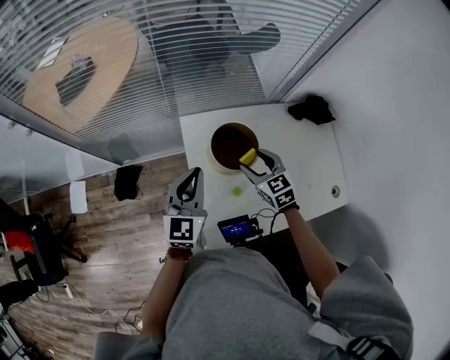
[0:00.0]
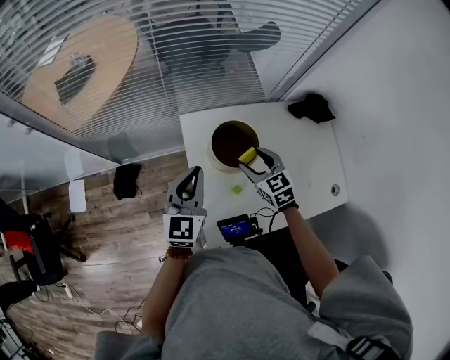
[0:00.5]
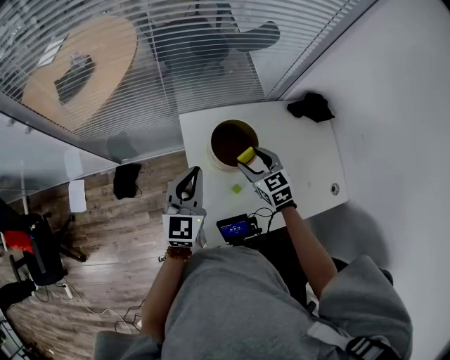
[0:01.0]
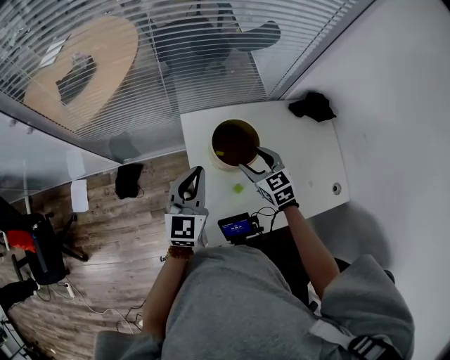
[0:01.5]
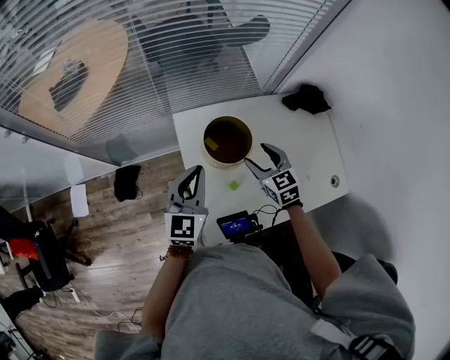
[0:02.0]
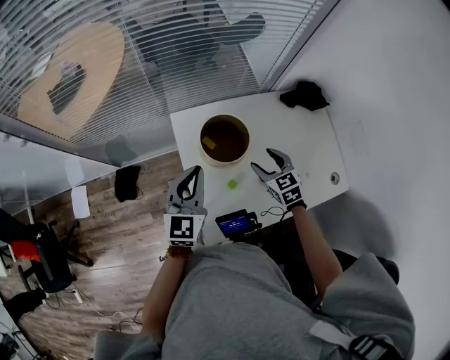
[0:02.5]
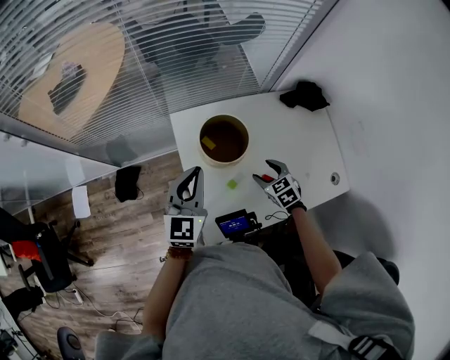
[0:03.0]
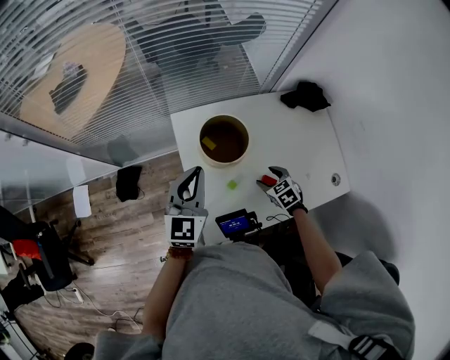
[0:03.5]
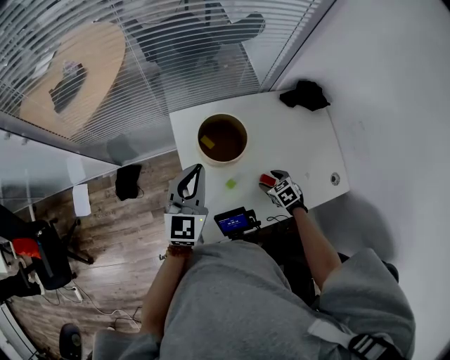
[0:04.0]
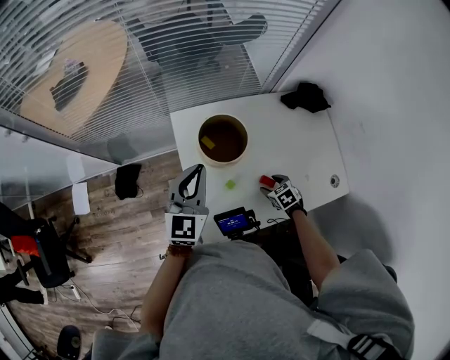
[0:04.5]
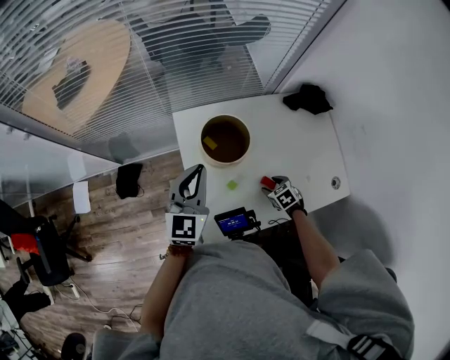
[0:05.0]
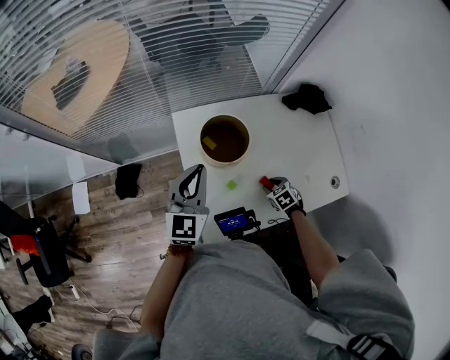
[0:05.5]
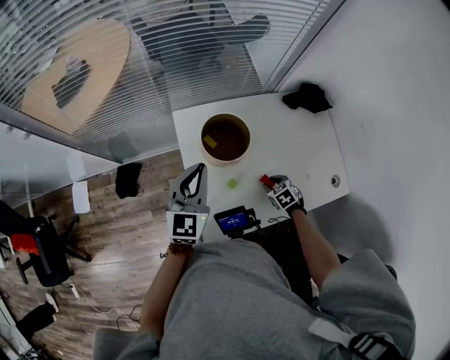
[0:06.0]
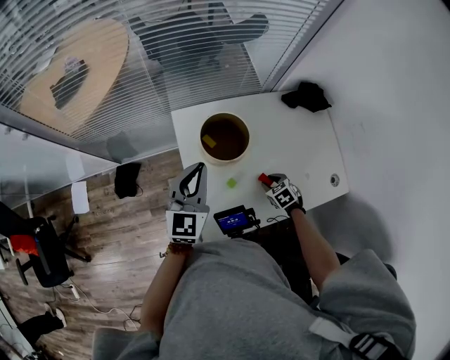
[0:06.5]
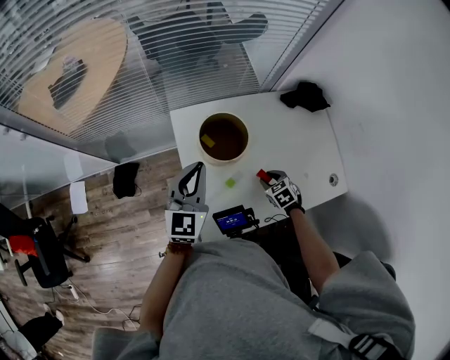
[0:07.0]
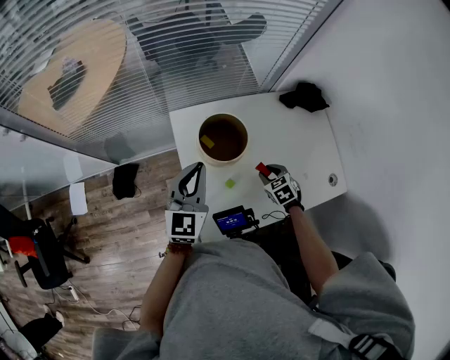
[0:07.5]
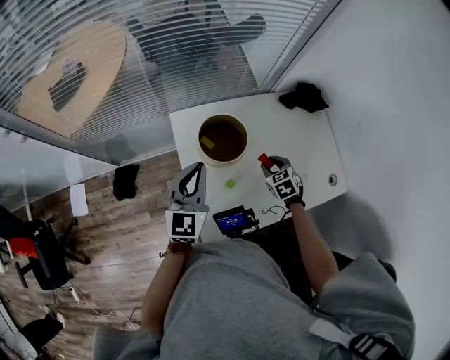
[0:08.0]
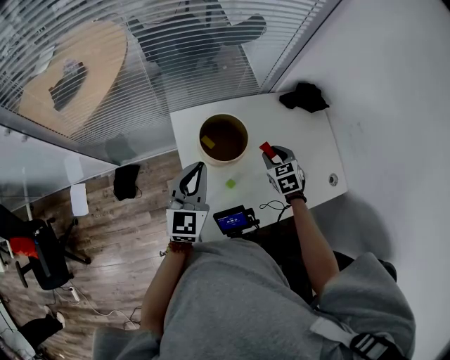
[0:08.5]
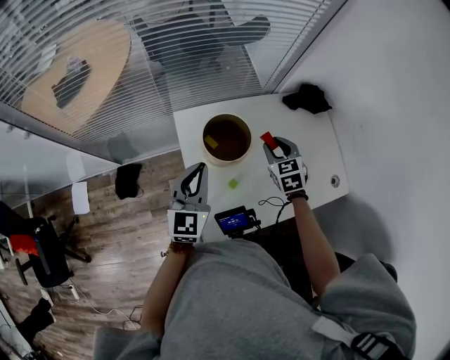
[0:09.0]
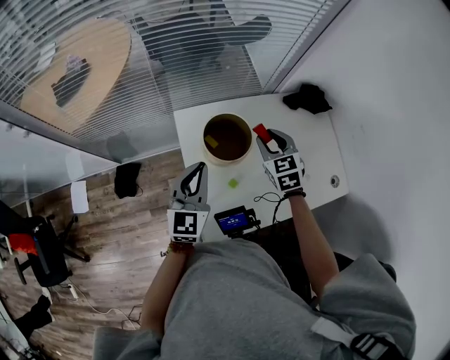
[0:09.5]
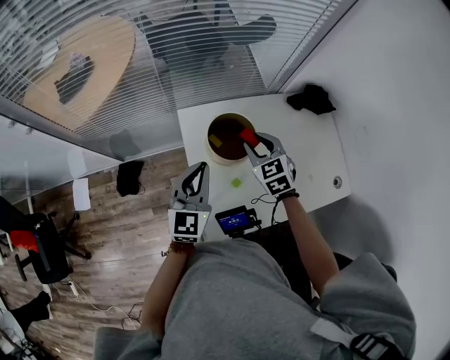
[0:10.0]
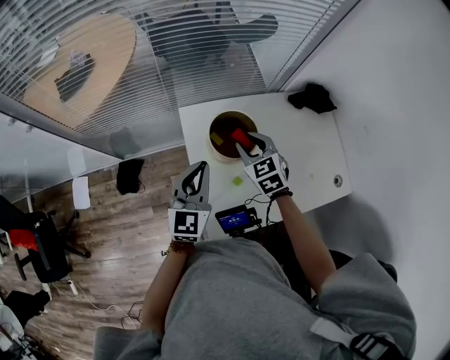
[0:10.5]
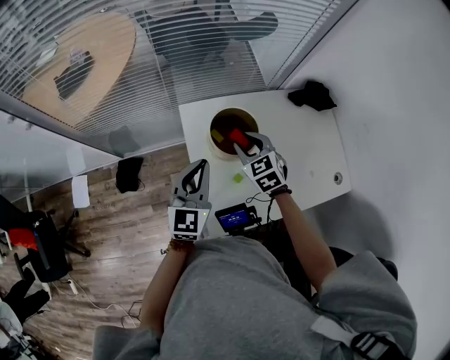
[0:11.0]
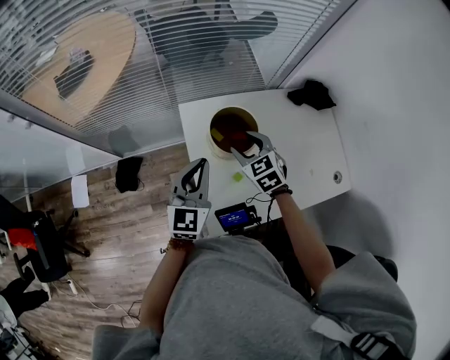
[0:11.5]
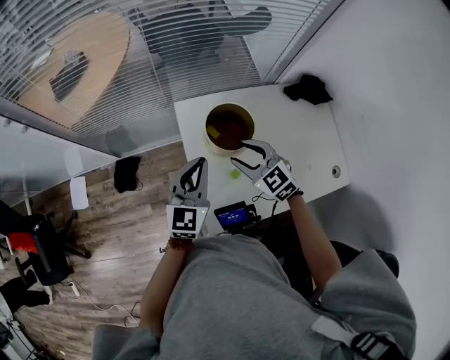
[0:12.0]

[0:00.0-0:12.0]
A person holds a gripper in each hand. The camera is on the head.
0:00.0 to 0:02.0: There are only small adjustments of the grippers.
0:02.0 to 0:04.0: The right gripper heads downward, backward and to the right, covering some 25 cm, and tilts its fingers roughly 30 degrees downward.
0:04.0 to 0:06.0: The right gripper closes up.
0:06.0 to 0:08.0: The right gripper heads upward and forward, covering approximately 15 cm.
0:08.0 to 0:10.0: The right gripper shifts some 20 cm upward and to the left, and rotates about 20 degrees.
0:10.0 to 0:12.0: The right gripper moves backward and to the left, approximately 10 cm, and changes its angle by roughly 20 degrees.

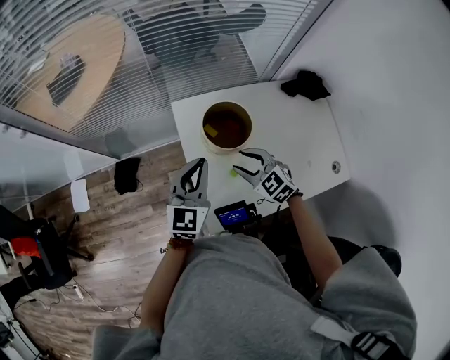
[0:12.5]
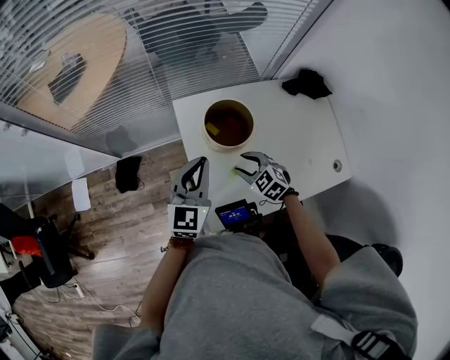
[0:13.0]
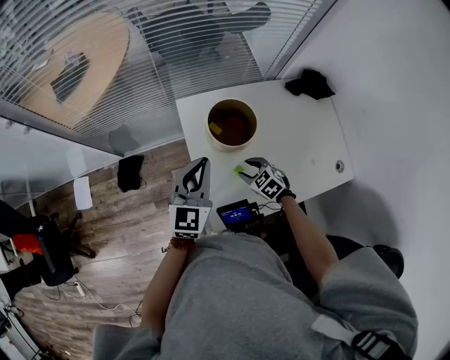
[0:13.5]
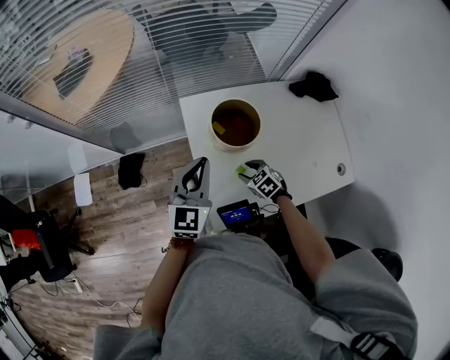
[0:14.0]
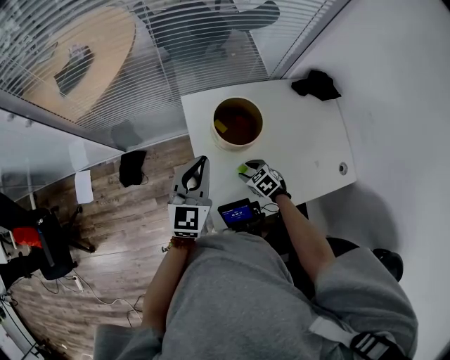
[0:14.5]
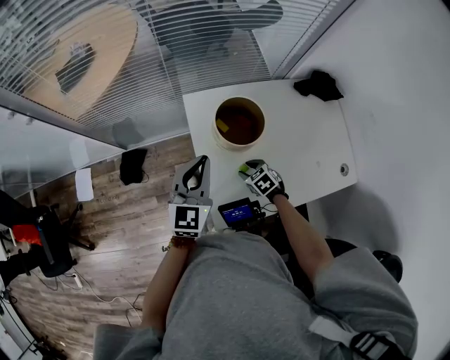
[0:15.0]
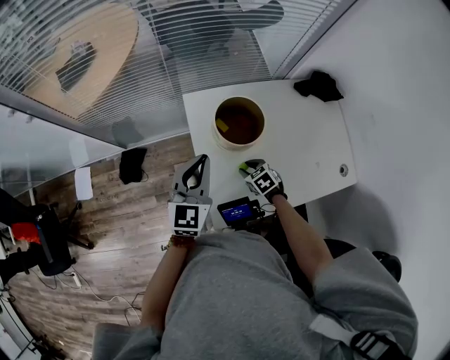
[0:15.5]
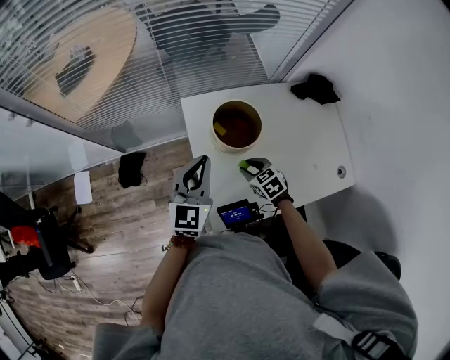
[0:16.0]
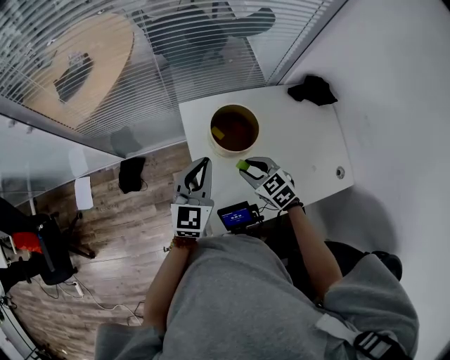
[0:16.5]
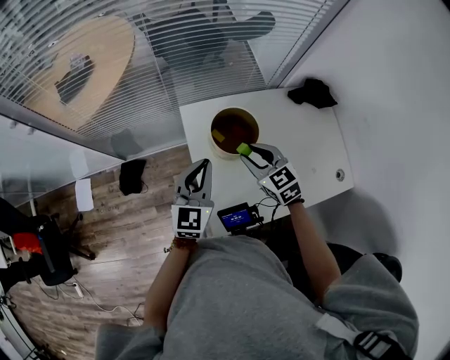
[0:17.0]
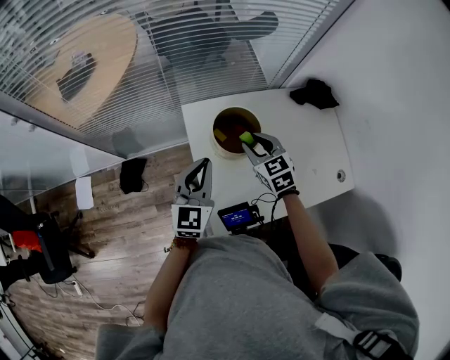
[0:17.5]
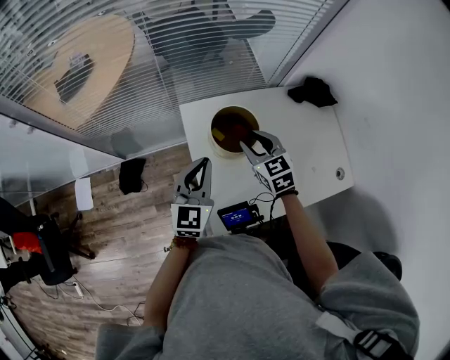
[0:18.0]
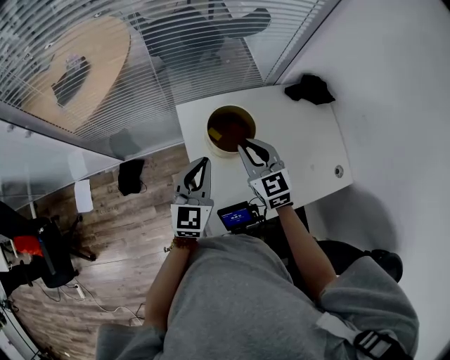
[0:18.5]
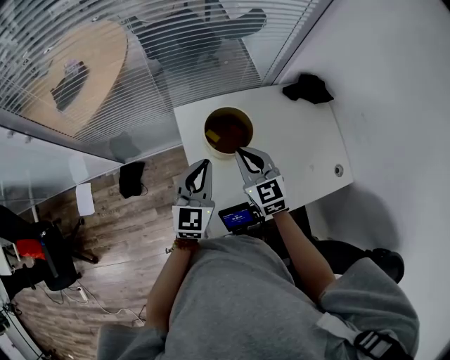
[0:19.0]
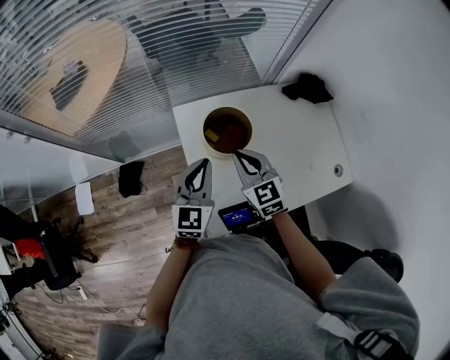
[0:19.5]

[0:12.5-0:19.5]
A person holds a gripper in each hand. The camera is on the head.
0:12.5 to 0:14.5: The right gripper travels downward by about 20 cm, and rotates about 30 degrees.
0:14.5 to 0:16.0: The right gripper travels upward by some 5 cm.
0:16.0 to 0:17.5: The right gripper moves upward and forward, about 15 cm, and swivels some 20 degrees.
0:17.5 to 0:19.5: The right gripper changes place by approximately 5 cm, and closes its fingers.

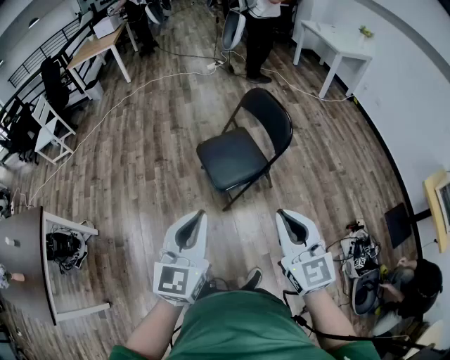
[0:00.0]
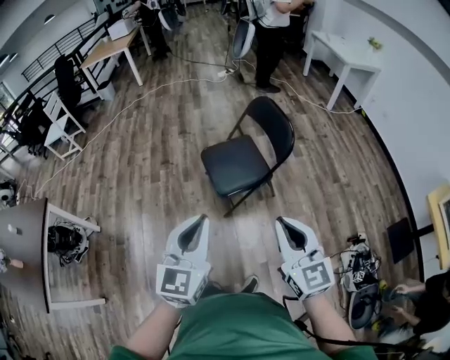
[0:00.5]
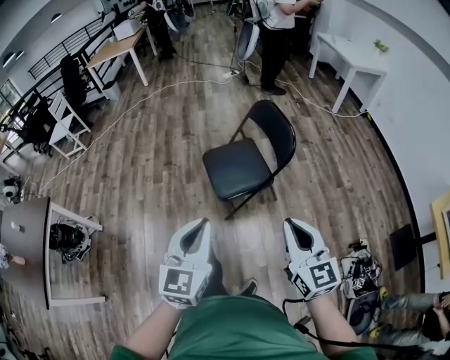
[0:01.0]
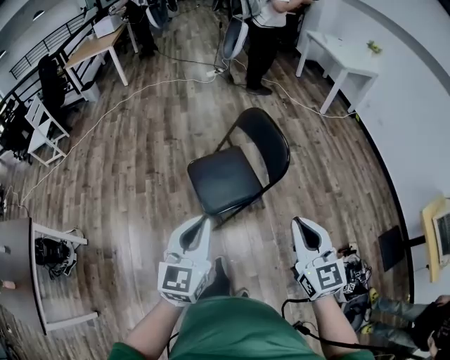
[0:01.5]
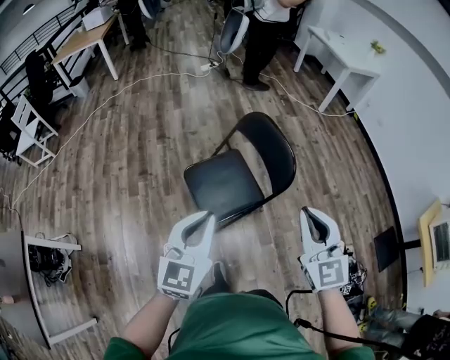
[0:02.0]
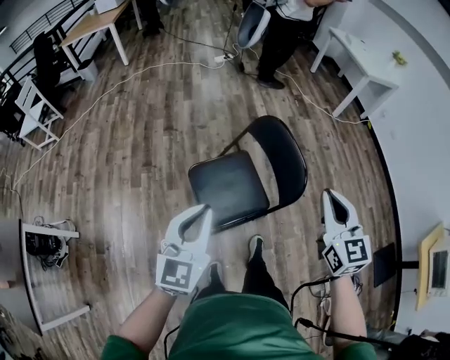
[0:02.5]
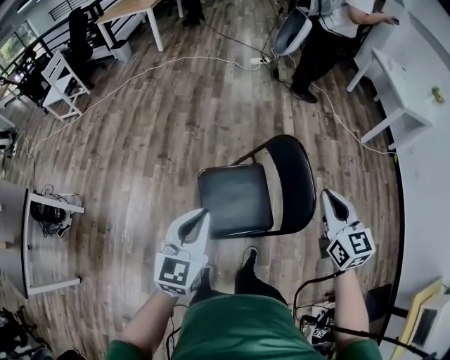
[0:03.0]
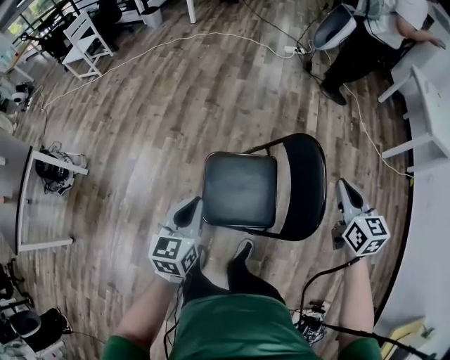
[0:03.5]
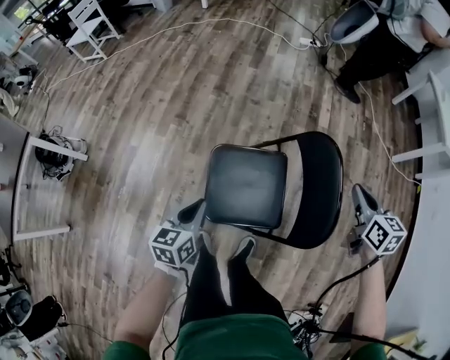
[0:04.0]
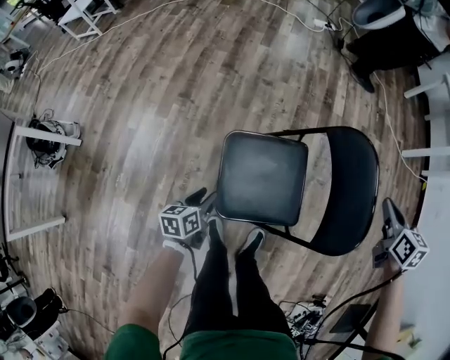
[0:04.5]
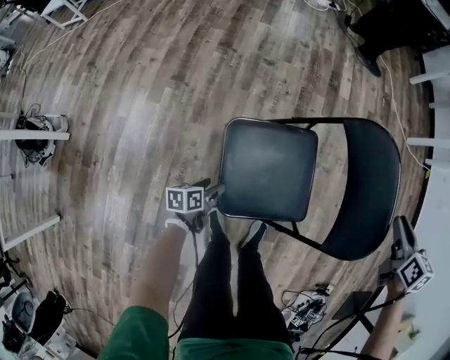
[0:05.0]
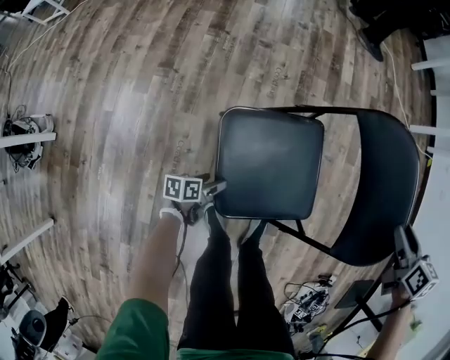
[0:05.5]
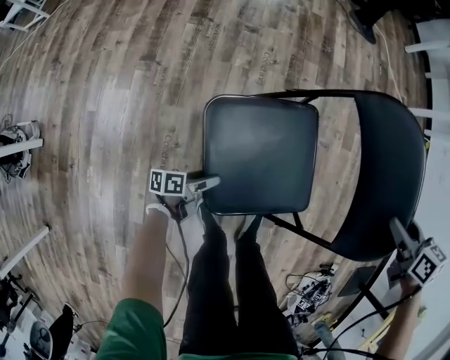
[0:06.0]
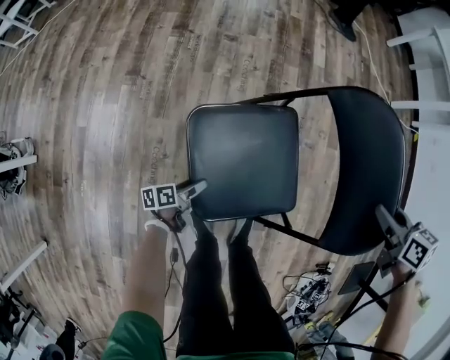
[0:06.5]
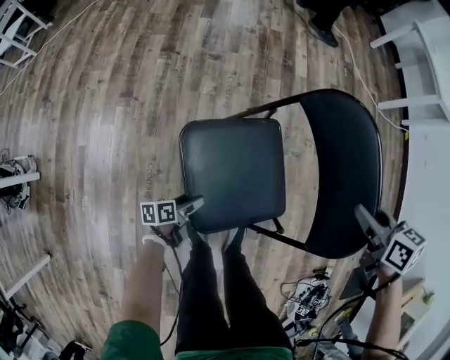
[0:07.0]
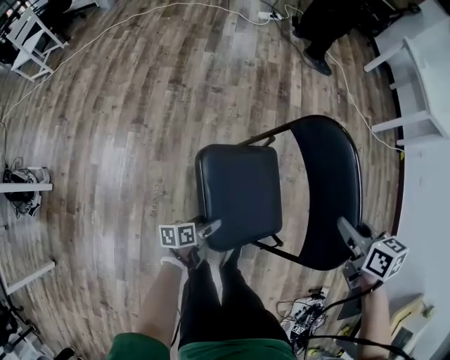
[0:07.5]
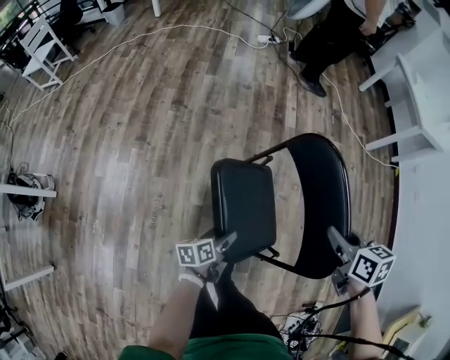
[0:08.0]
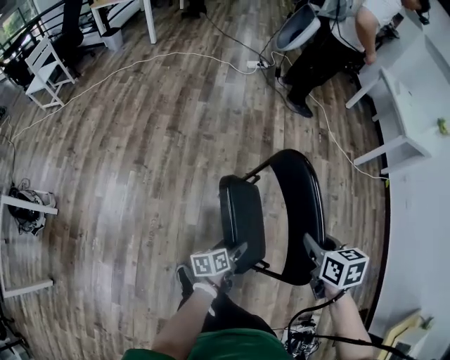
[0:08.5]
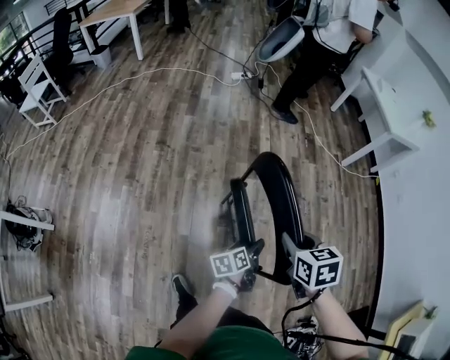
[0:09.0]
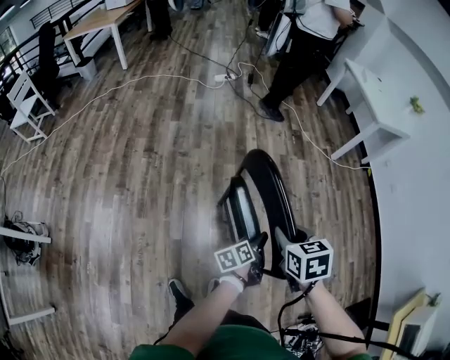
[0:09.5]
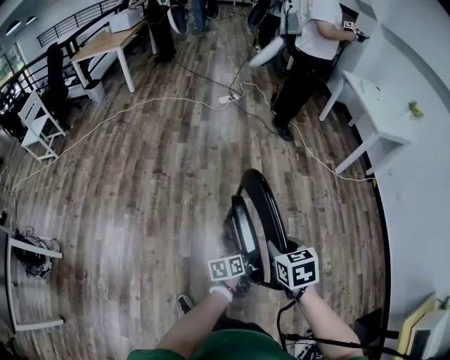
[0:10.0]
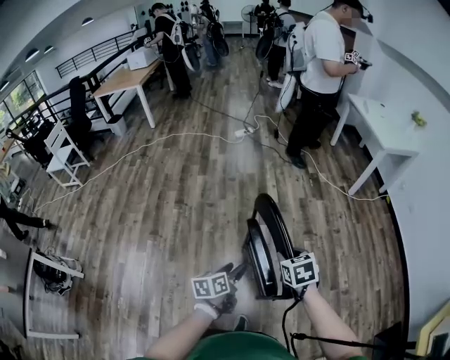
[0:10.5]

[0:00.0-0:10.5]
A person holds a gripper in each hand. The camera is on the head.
0:00.0 to 0:02.0: The grippers both shift forward by approximately 25 cm.
0:02.0 to 0:04.0: The left gripper shifts approximately 25 cm downward, and swivels about 50 degrees; the right gripper changes place by some 50 cm, and swivels about 40 degrees.
0:04.0 to 0:06.5: The left gripper heads downward, covering roughly 40 cm, changes its angle by roughly 50 degrees, and opens; the right gripper travels downward by some 15 cm, rotates roughly 30 degrees, and opens up.
0:06.5 to 0:08.5: The right gripper is displaced upward by roughly 15 cm. Meanwhile the left gripper travels upward and to the right by approximately 40 cm.
0:08.5 to 0:10.5: The left gripper travels upward by about 20 cm, and closes up.
